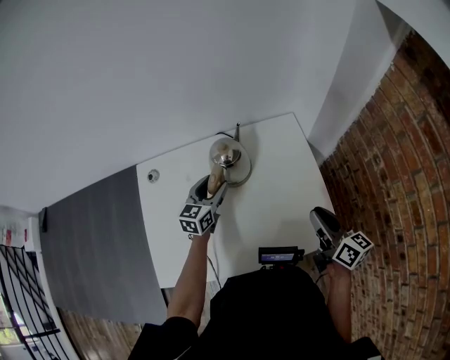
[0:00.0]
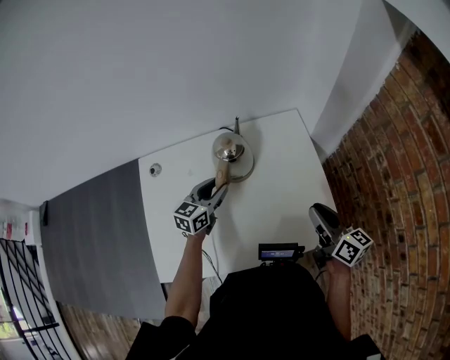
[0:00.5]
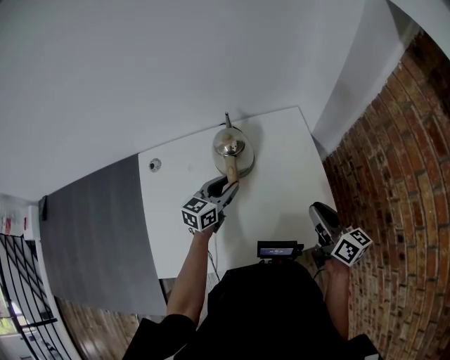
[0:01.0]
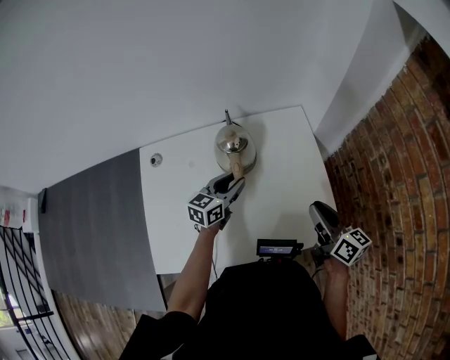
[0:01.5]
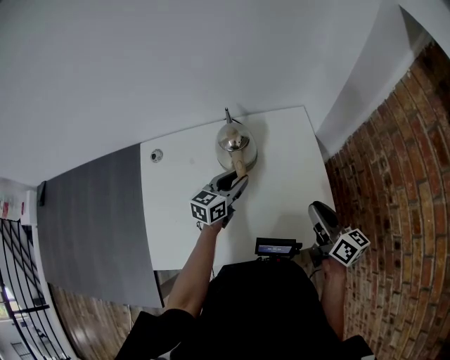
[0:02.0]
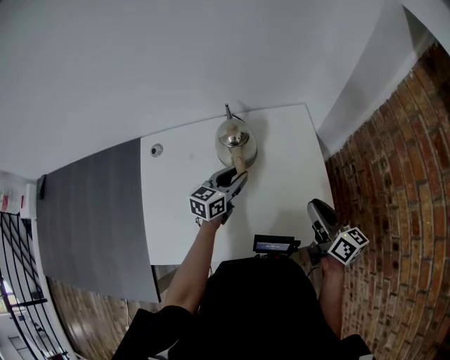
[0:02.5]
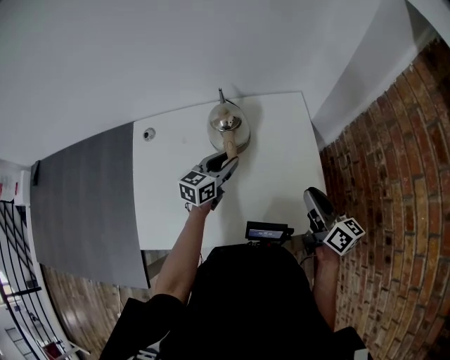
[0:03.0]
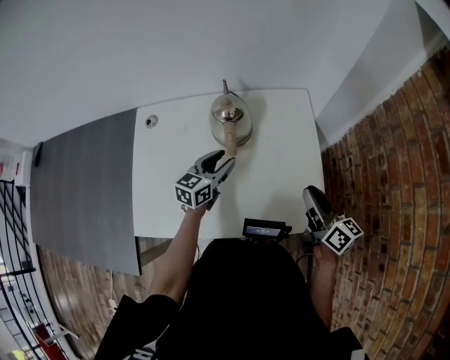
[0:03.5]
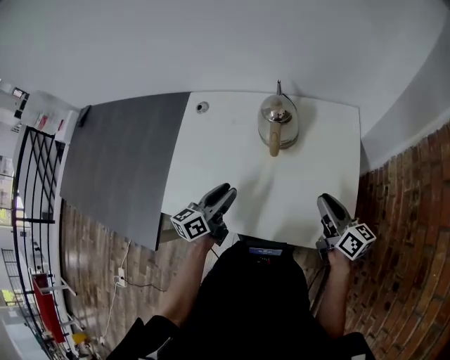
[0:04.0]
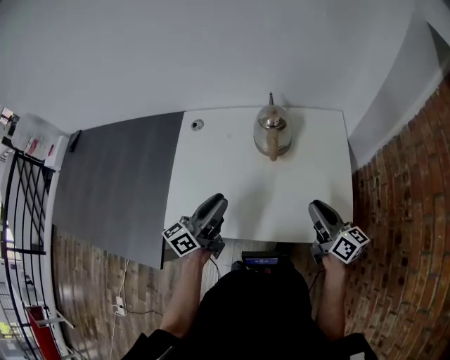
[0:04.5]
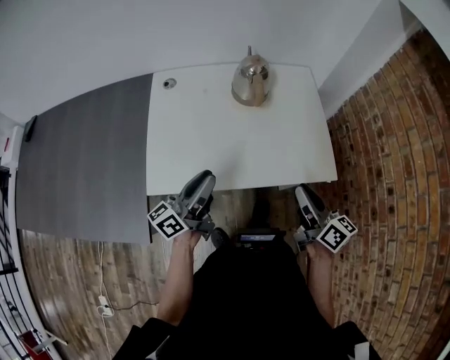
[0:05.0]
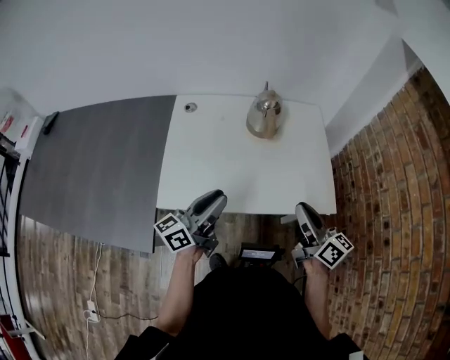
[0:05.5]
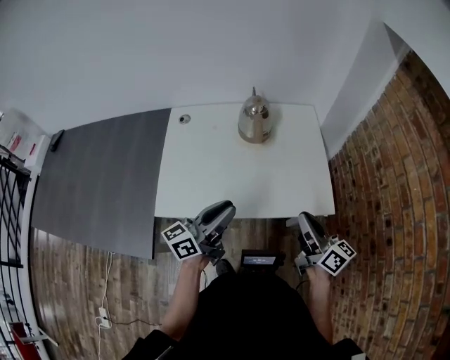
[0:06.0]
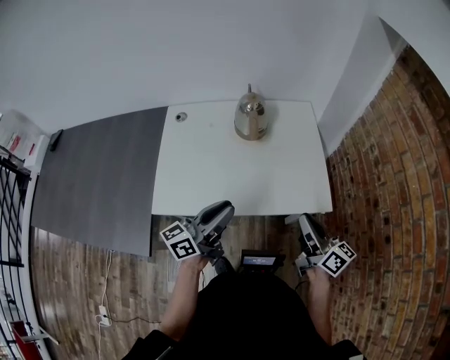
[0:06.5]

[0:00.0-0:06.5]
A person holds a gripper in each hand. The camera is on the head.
0:00.0 to 0:02.0: The left gripper travels to the right by approximately 5 cm.
0:02.0 to 0:04.5: The left gripper shifts about 25 cm backward, to the left and upward, and turns by roughly 40 degrees, while the right gripper goes about 5 cm to the left.
0:04.5 to 0:06.5: The left gripper travels backward and to the right by approximately 15 cm. The right gripper is displaced backward by about 15 cm.

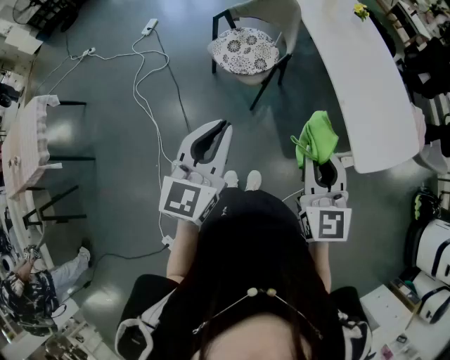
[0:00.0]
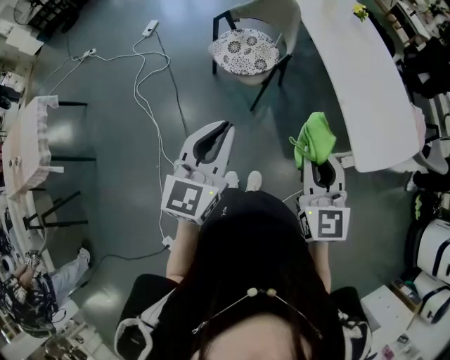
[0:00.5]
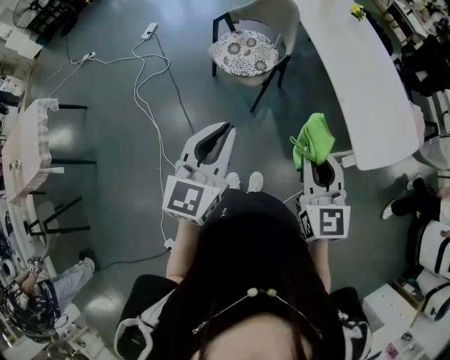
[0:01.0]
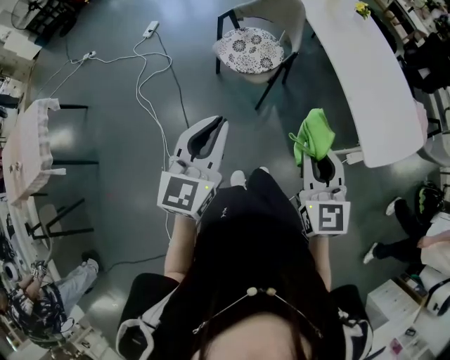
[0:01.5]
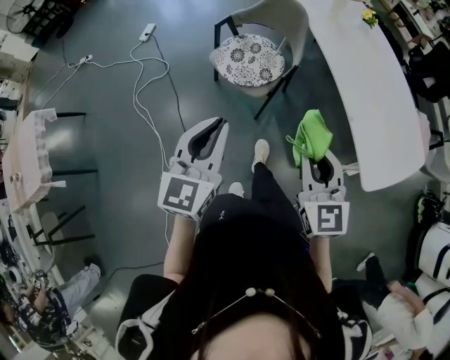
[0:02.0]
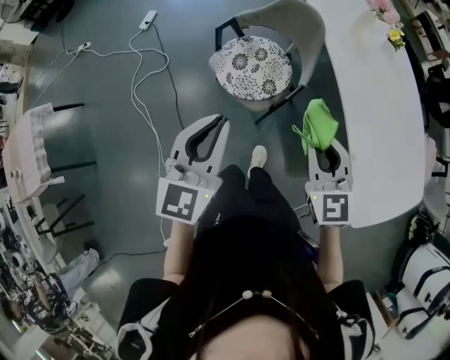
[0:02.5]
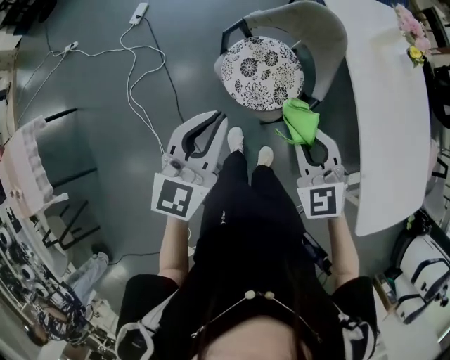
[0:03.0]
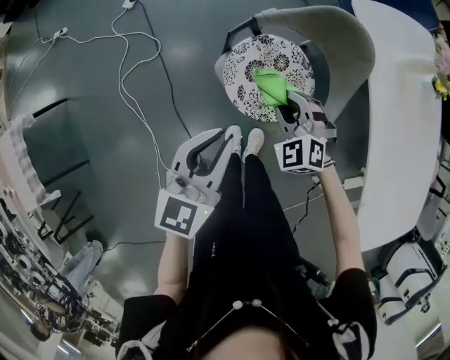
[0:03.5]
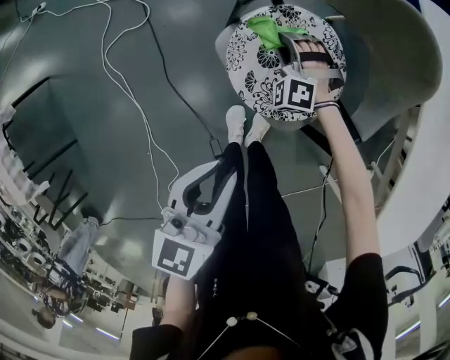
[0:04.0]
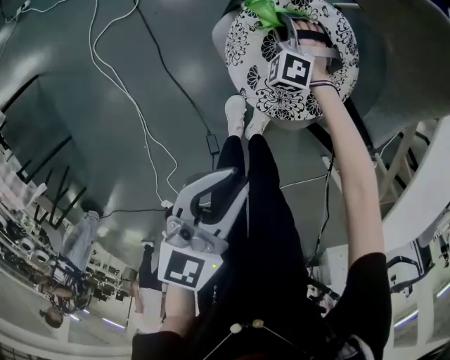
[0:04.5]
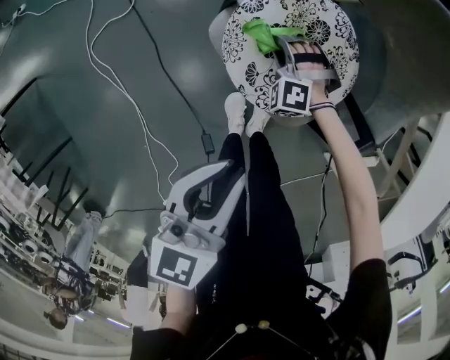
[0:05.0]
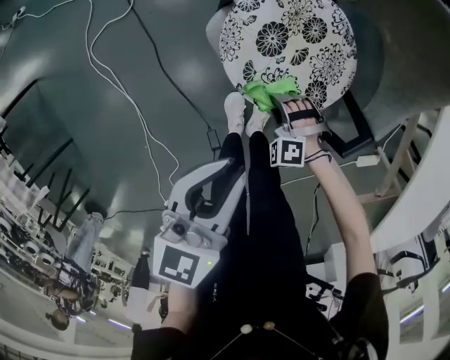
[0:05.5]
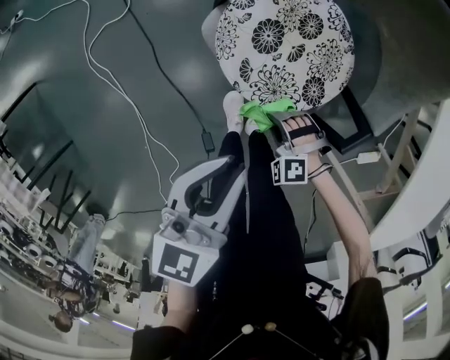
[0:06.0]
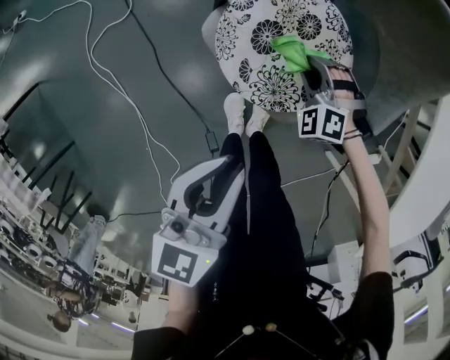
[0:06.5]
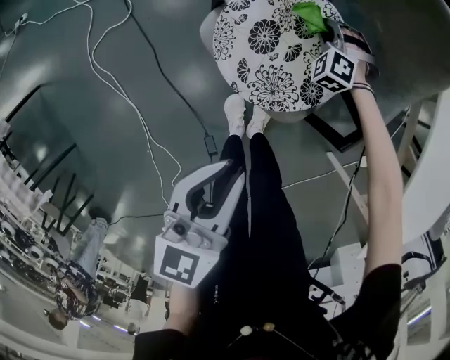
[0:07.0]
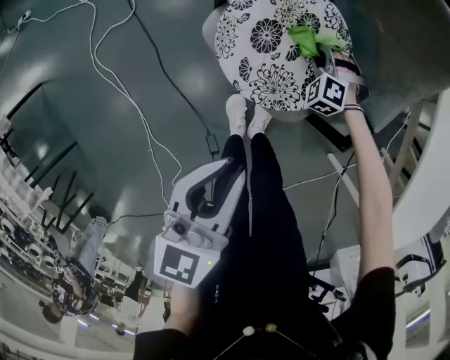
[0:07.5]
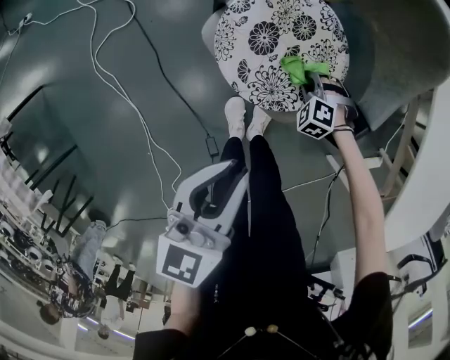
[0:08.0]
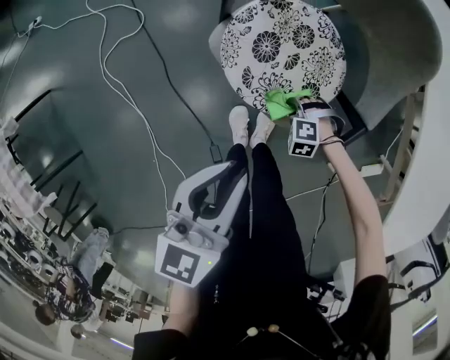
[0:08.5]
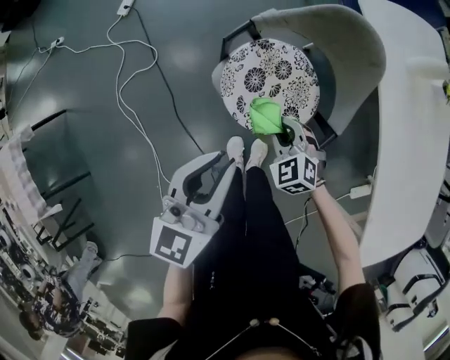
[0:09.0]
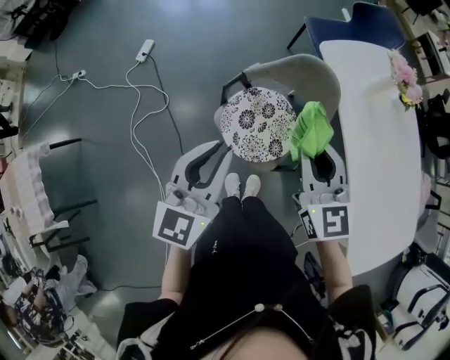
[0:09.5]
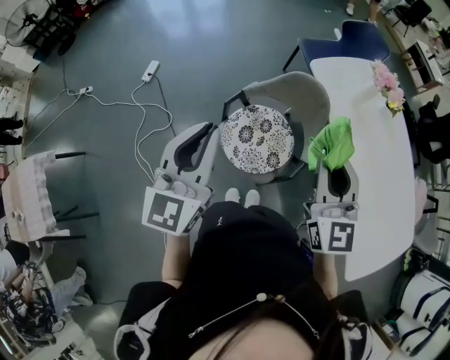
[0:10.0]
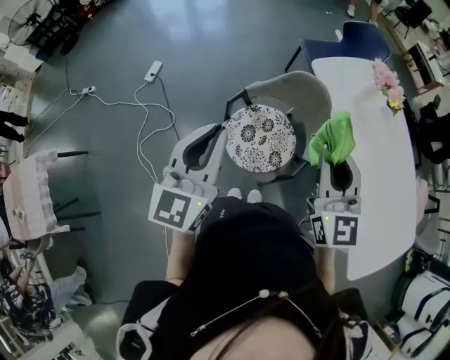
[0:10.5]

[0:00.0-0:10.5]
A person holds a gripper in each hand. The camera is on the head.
0:00.0 to 0:02.0: The left gripper moves forward and to the left, roughly 10 cm, while the right gripper is displaced forward by approximately 10 cm.
0:02.0 to 0:04.0: The left gripper is displaced forward and downward by about 50 cm, and swivels roughly 30 degrees; the right gripper is displaced forward and downward by approximately 80 cm, and rotates around the line of its fingers by approximately 70 degrees, counterclockwise from behind.
0:04.0 to 0:06.5: The right gripper heads to the right, covering about 10 cm, and moves approximately 25 cm backward and comes back.
0:06.5 to 0:08.5: The right gripper changes place by some 15 cm, and changes its angle by approximately 30 degrees.
0:08.5 to 0:10.5: The right gripper travels upward by approximately 70 cm, and tilts its fingers roughly 80 degrees upward; the left gripper shifts roughly 35 cm upward, and changes its angle by about 30 degrees.

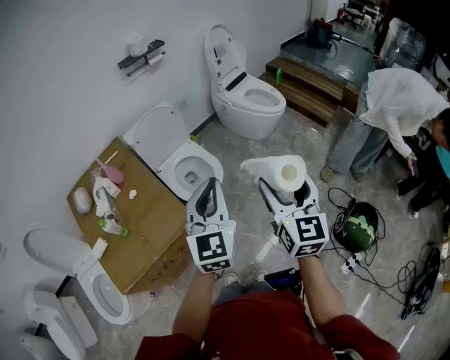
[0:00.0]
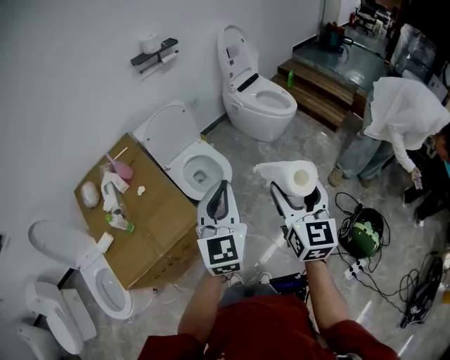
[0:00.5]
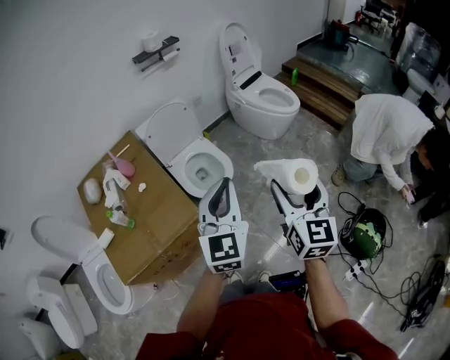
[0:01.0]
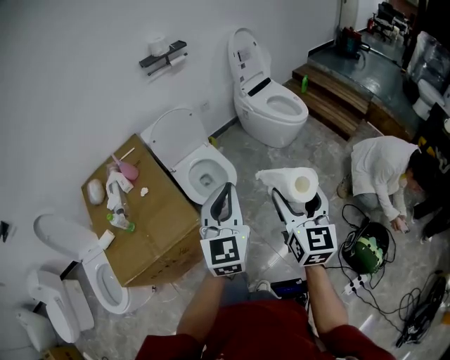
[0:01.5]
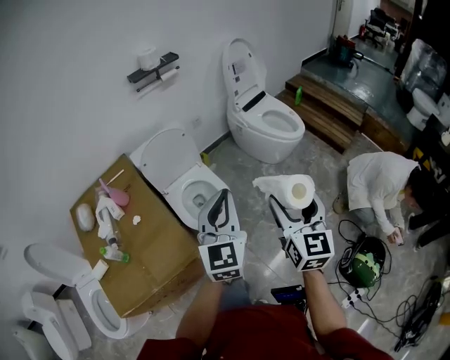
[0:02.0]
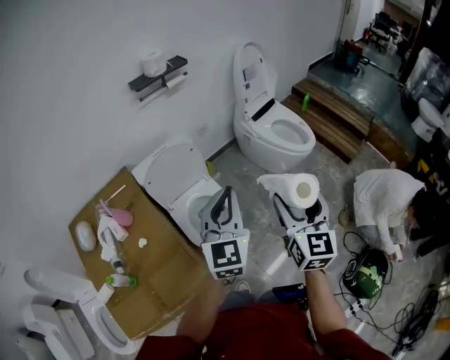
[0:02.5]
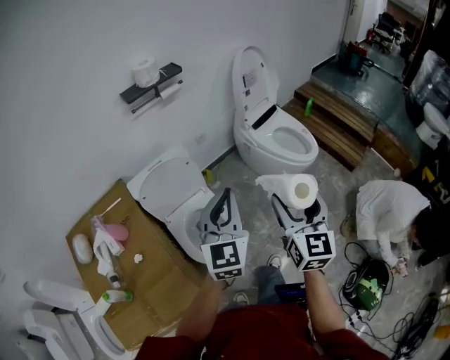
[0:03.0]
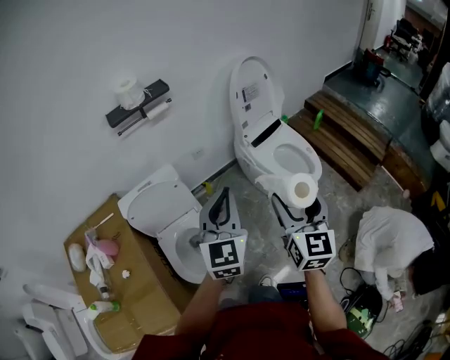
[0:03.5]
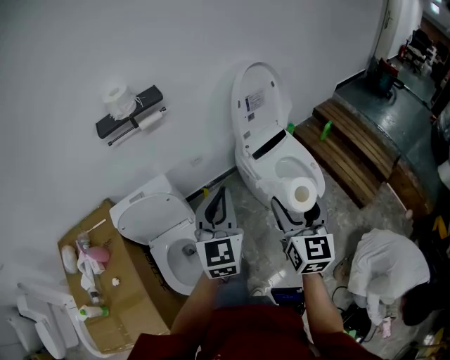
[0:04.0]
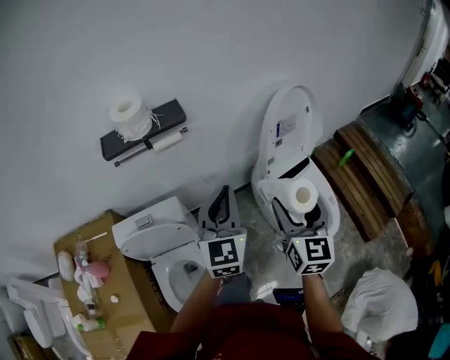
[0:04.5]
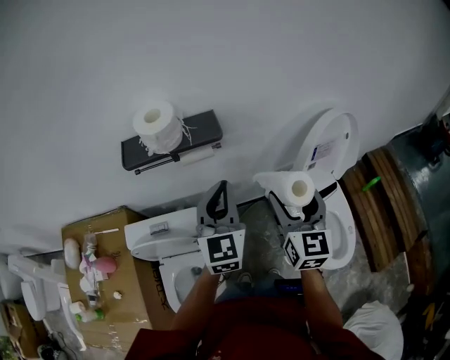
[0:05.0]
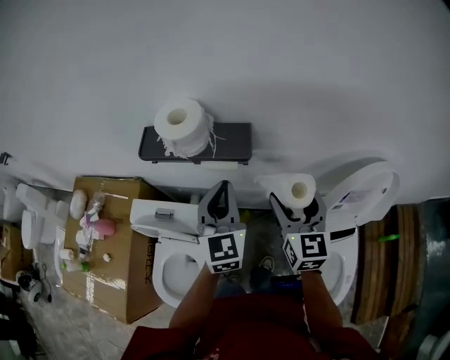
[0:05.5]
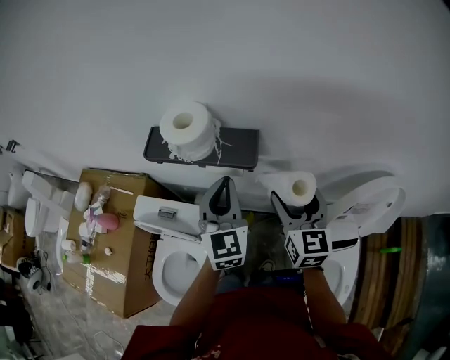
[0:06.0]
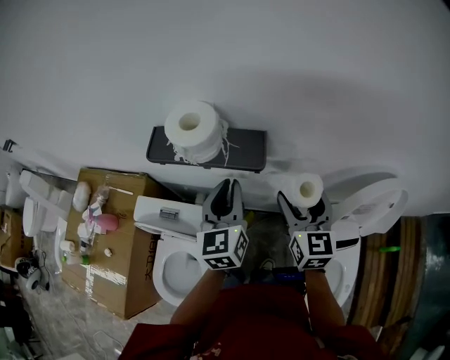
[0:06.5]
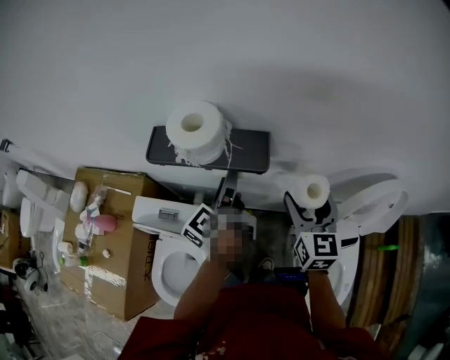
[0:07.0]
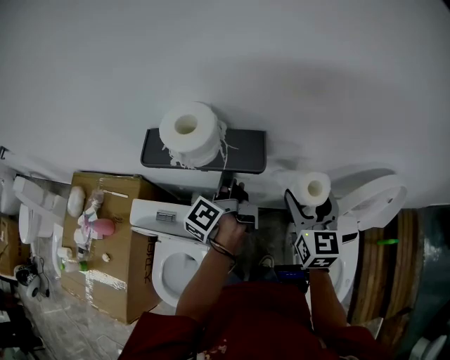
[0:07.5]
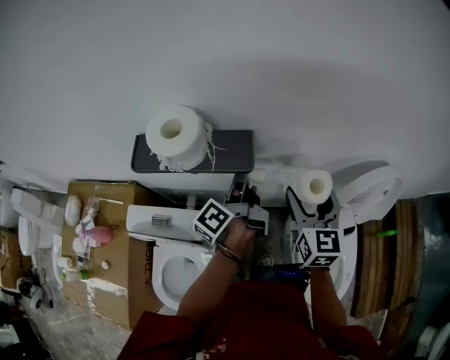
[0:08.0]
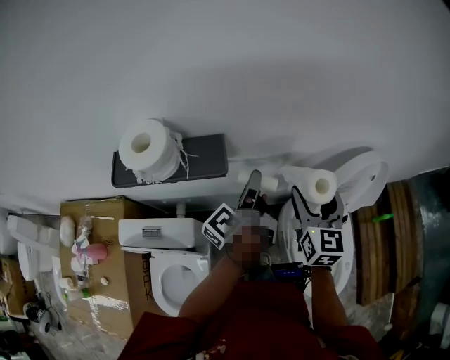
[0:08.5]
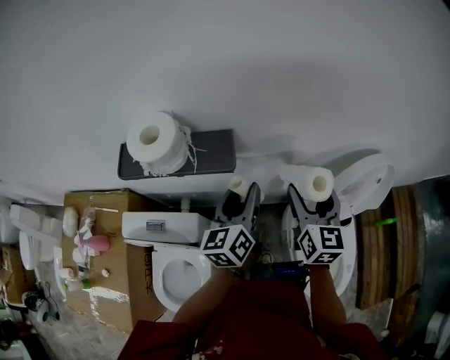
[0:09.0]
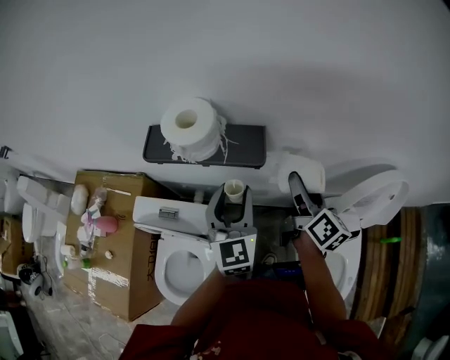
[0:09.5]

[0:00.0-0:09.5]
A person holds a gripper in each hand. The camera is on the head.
0:00.0 to 0:02.0: The grippers both shift forward by about 15 cm.
0:02.0 to 0:04.0: The pair of grippers is taken forward, some 50 cm.
0:04.0 to 0:05.5: The pair of grippers is taken roughly 50 cm. The right gripper changes its angle by roughly 40 degrees; the left gripper swivels roughly 40 degrees.
0:05.5 to 0:07.5: The left gripper heads forward and downward, covering about 10 cm, rotates around the line of its fingers by about 90 degrees, counterclockwise from behind, and opens; the right gripper shifts by approximately 5 cm.
0:07.5 to 0:09.5: The right gripper goes to the right and returns, about 10 cm each way, and rolls clockwise, seen from behind, by approximately 50 degrees; the left gripper travels backward by roughly 10 cm, moves approximately 15 cm to the right and comes back, and twists roughly 80 degrees clockwise, seen from behind.
